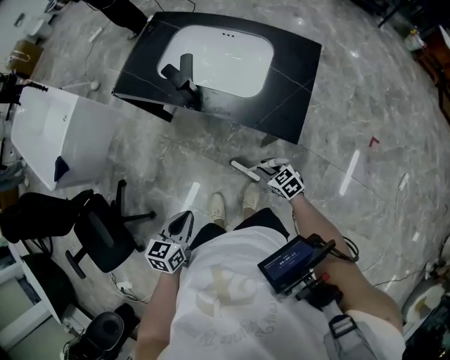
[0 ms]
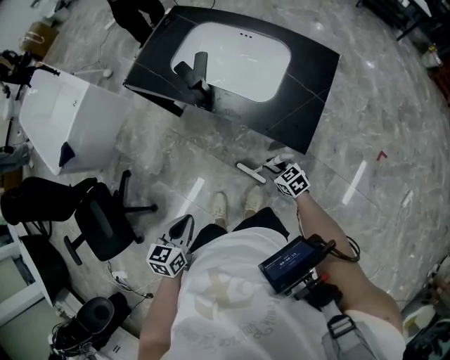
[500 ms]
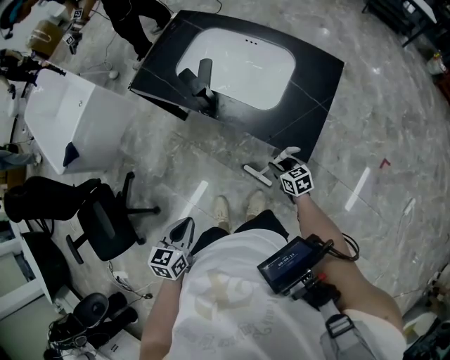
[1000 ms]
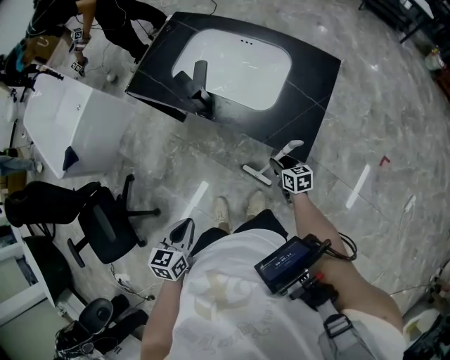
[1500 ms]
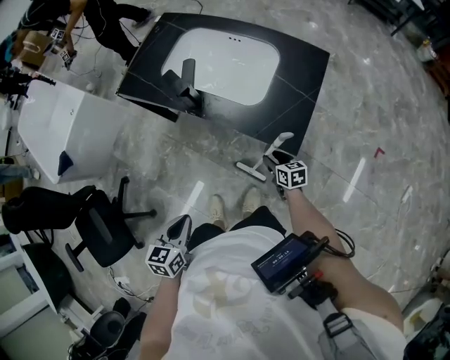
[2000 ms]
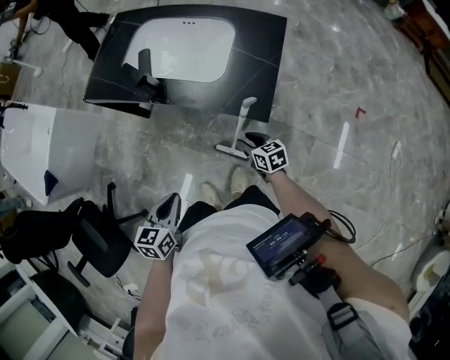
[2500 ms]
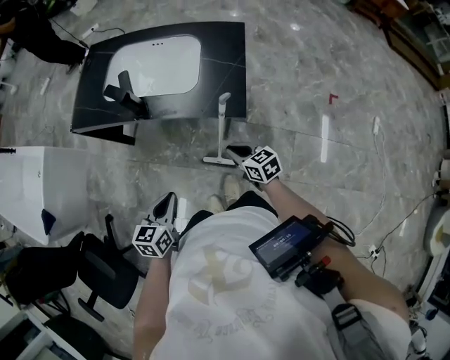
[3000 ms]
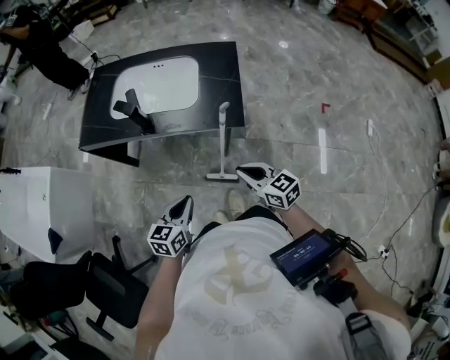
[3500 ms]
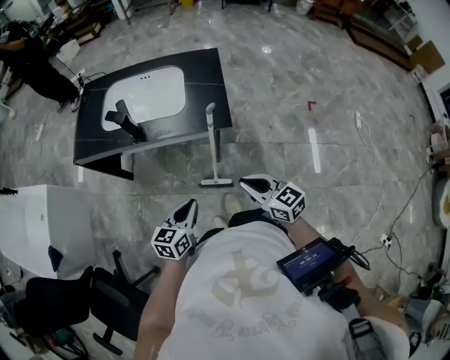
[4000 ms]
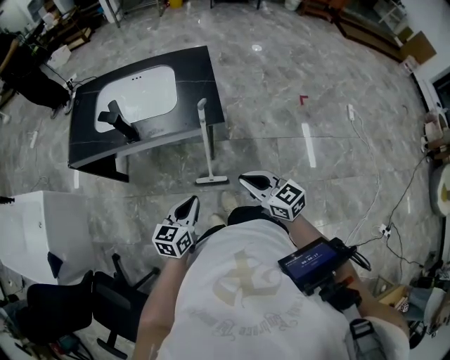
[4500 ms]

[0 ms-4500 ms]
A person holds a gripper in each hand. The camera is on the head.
0 ms to 2000 ms: The right gripper shifts about 10 cm to the right and forward, and turns by about 30 degrees.
2000 ms to 4500 ms: The right gripper heads upward, covering approximately 25 cm, turns by some 30 degrees, and closes its fingers. Meanwhile the left gripper changes place by roughly 10 cm, and turns by roughly 40 degrees.

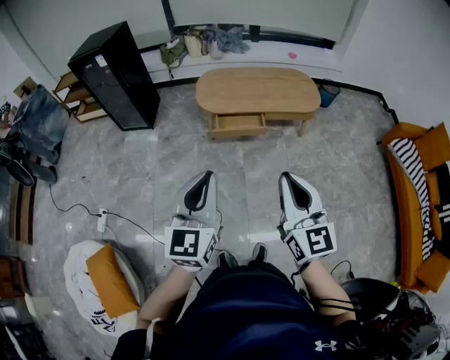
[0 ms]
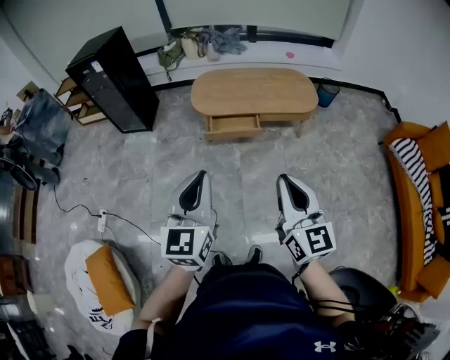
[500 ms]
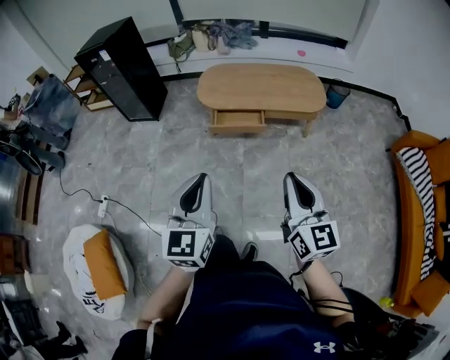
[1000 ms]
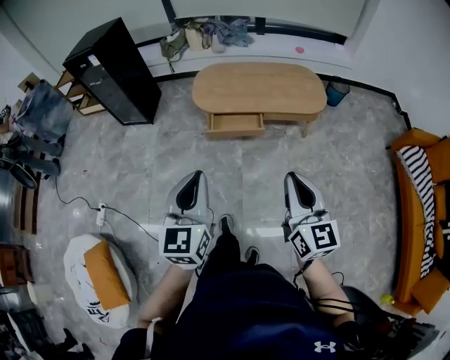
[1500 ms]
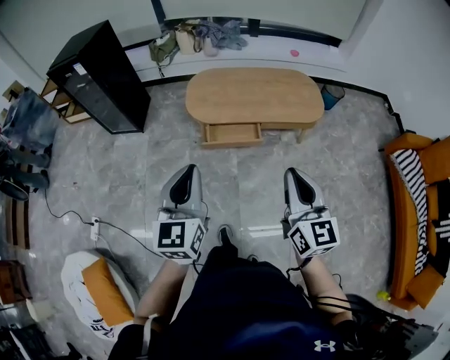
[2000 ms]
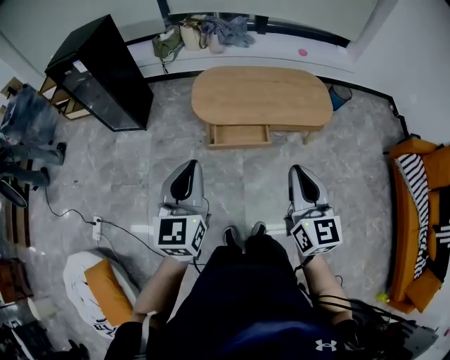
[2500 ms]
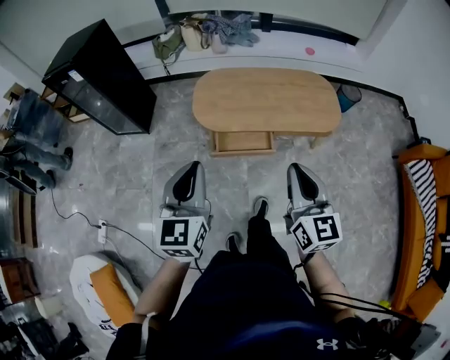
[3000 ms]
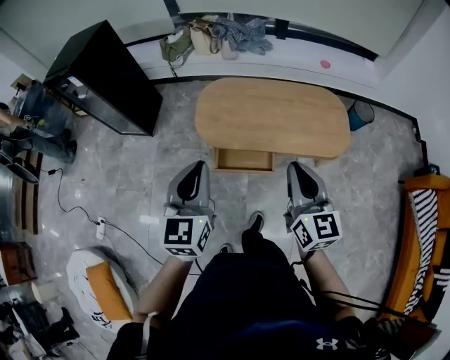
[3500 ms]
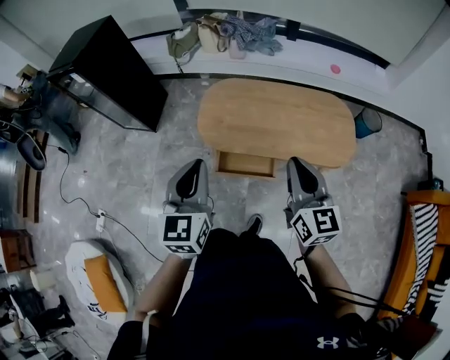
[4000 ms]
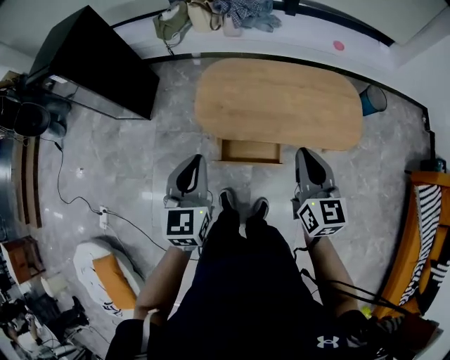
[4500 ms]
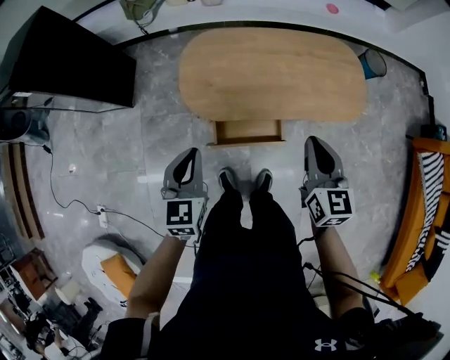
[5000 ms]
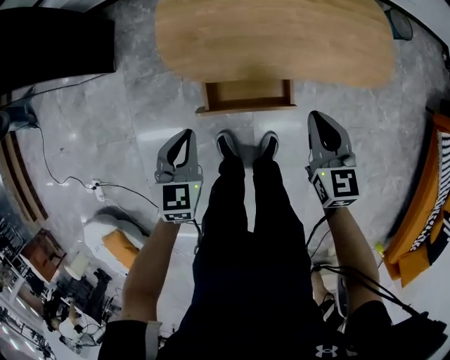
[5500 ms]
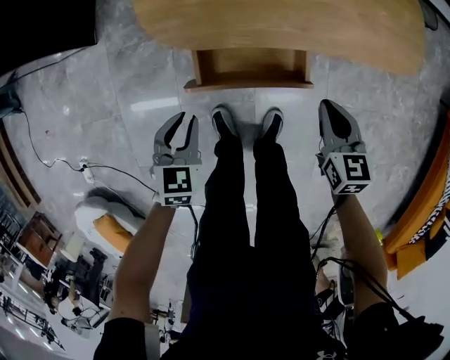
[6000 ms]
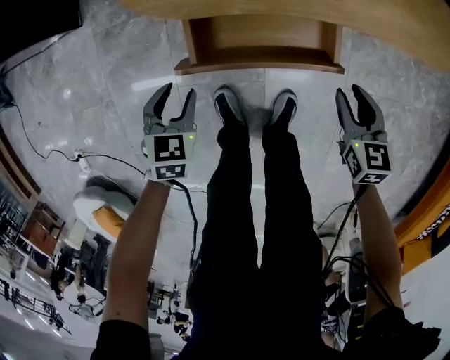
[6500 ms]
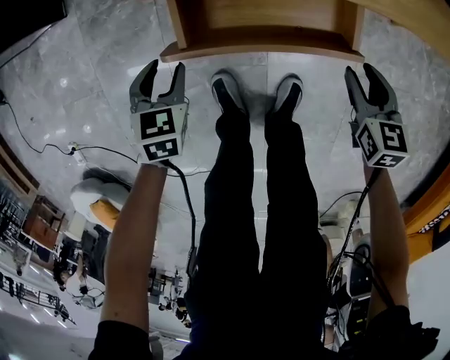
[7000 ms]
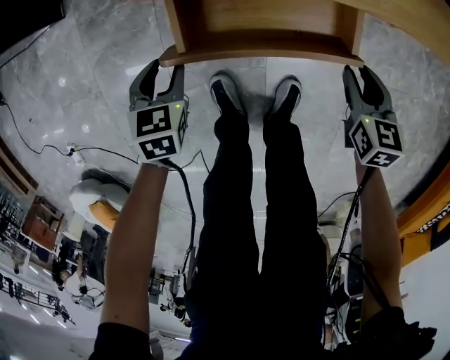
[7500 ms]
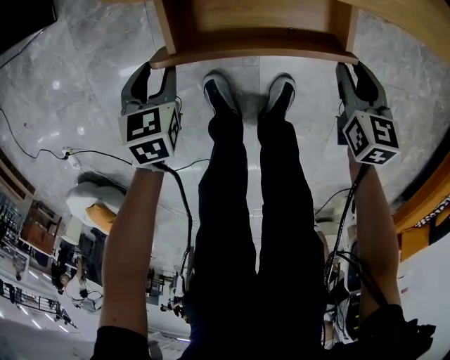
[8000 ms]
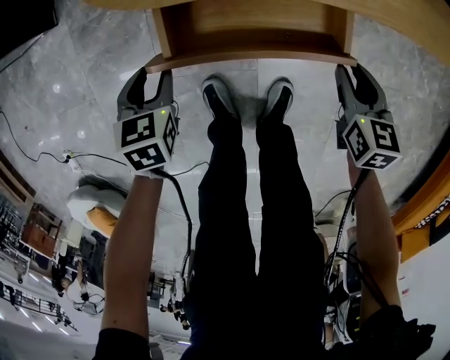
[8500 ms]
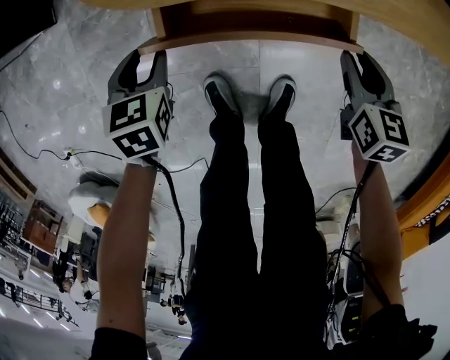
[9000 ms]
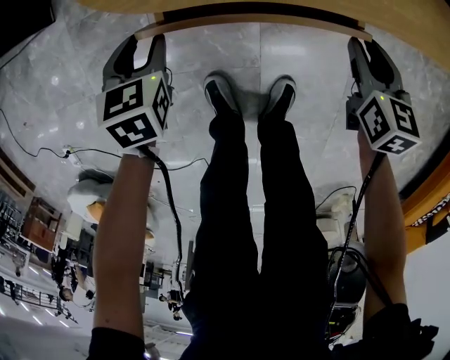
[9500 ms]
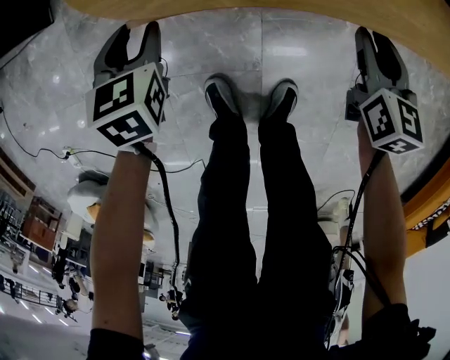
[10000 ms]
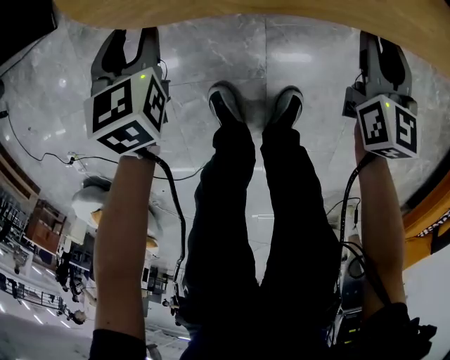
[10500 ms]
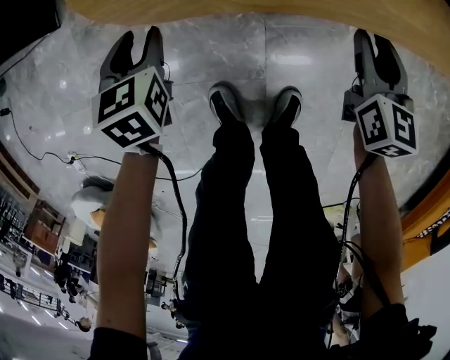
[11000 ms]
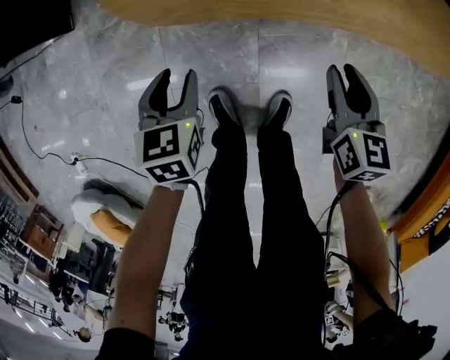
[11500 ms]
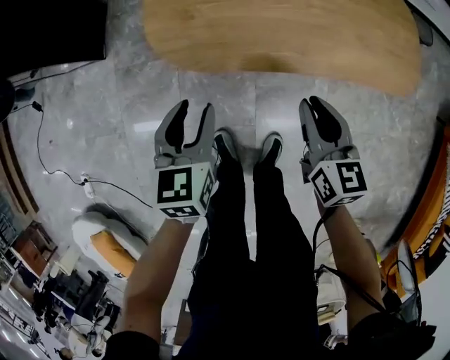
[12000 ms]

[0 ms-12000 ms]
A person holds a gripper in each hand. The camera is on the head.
0 ms to 2000 ms: The grippers both shift forward by approximately 20 cm.
2000 ms to 4000 ms: Both grippers travel together forward, approximately 35 cm.
4000 ms to 6000 ms: The two grippers go approximately 50 cm downward. The right gripper angles its fingers downward, by about 30 degrees, while the left gripper angles its fingers downward, by approximately 40 degrees.
6000 ms to 8000 ms: The two grippers go approximately 20 cm downward. The left gripper opens, while the right gripper opens its fingers.
8000 ms to 10000 ms: Both grippers travel together forward, approximately 10 cm.
10000 ms to 12000 ms: Both grippers travel together upward, about 25 cm.

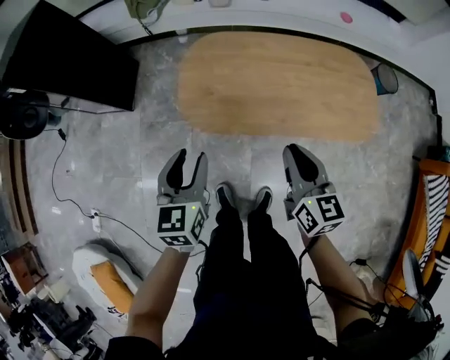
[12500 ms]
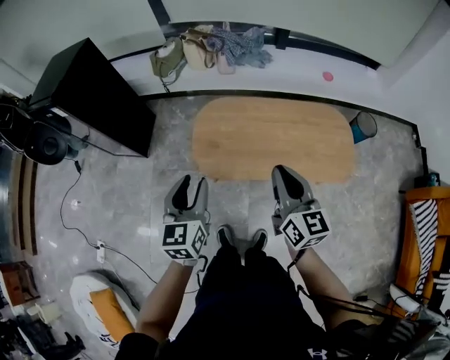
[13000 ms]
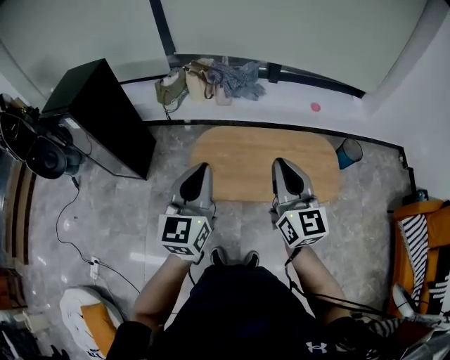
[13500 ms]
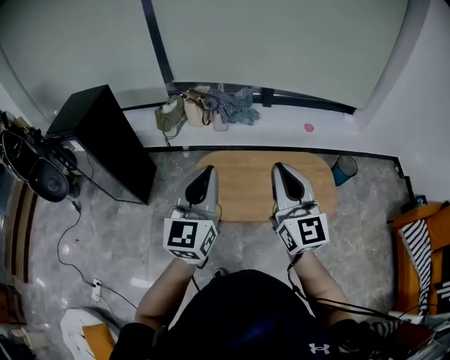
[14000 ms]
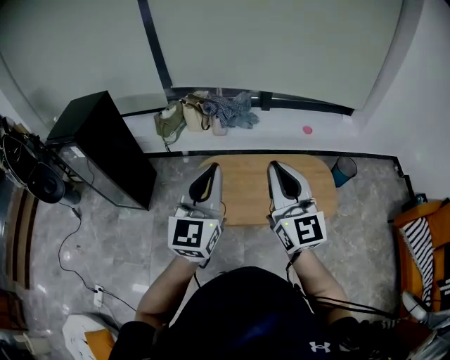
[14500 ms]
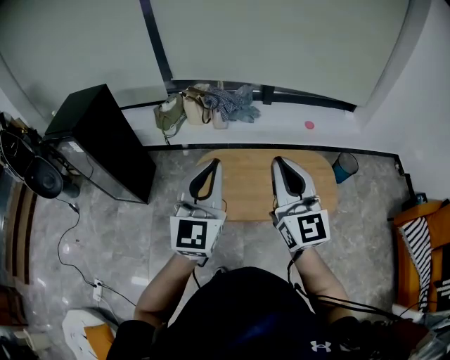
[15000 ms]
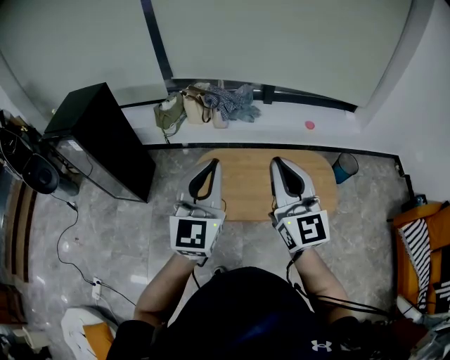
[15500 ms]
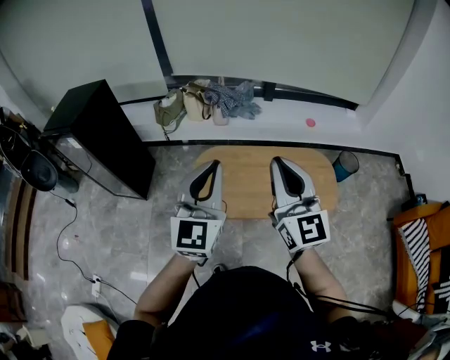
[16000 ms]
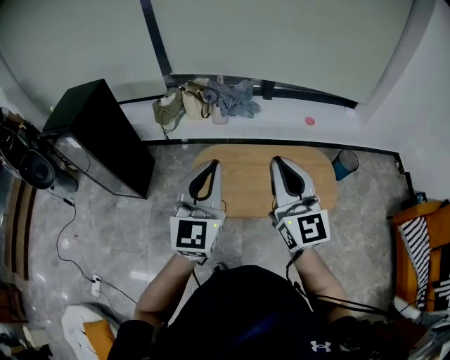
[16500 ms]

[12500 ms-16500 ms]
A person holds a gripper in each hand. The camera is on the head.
12500 ms to 14500 ms: The grippers both shift upward by about 40 cm. The left gripper tips its fingers upward by some 40 degrees, and closes its fingers; the right gripper points its fingers approximately 30 degrees further upward.
14500 ms to 16500 ms: There are only small adjustments of the grippers.

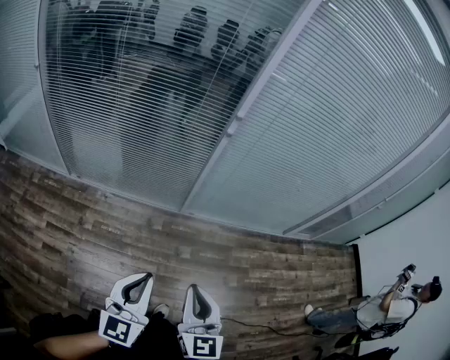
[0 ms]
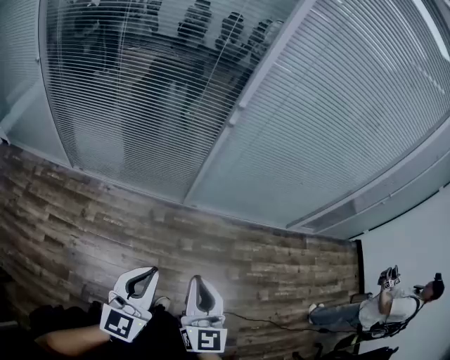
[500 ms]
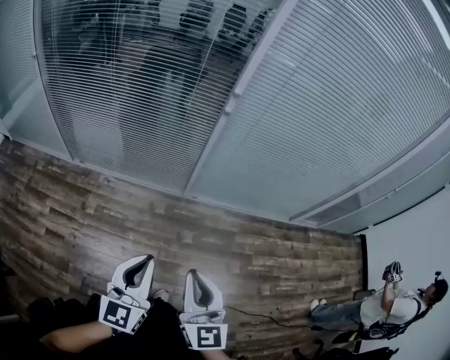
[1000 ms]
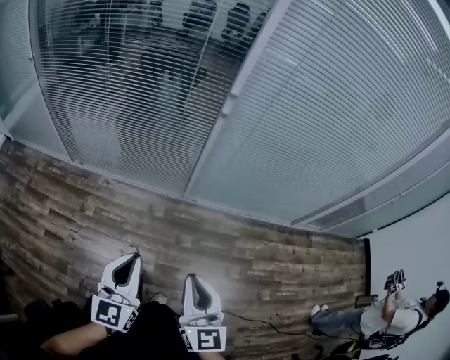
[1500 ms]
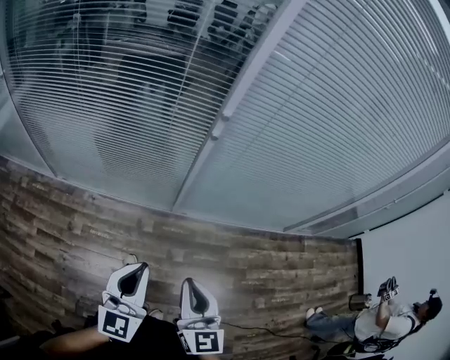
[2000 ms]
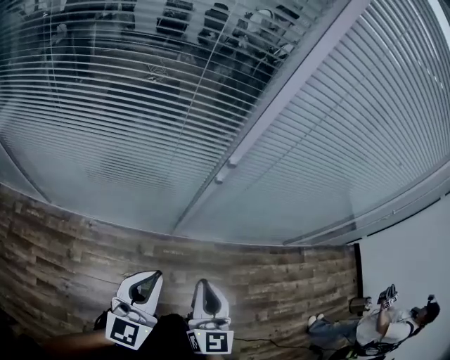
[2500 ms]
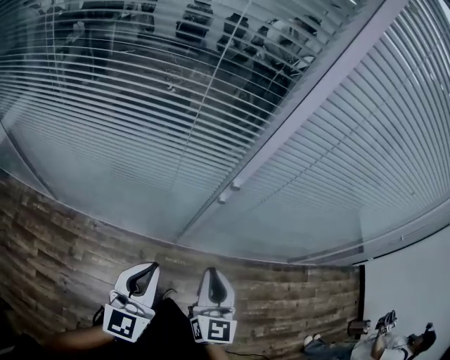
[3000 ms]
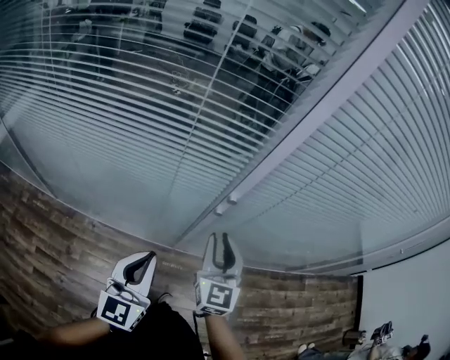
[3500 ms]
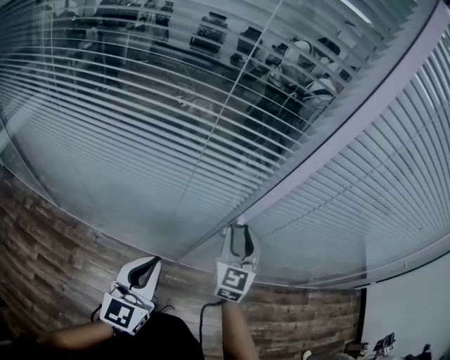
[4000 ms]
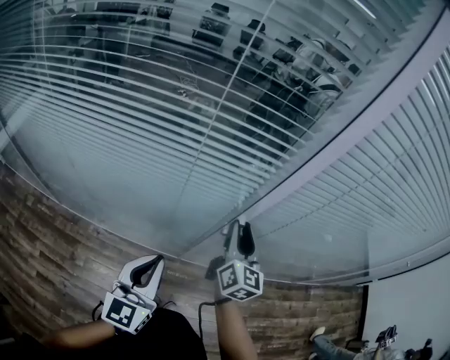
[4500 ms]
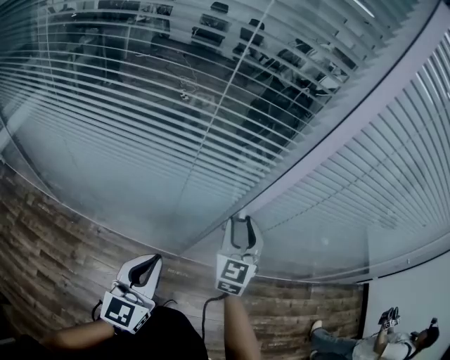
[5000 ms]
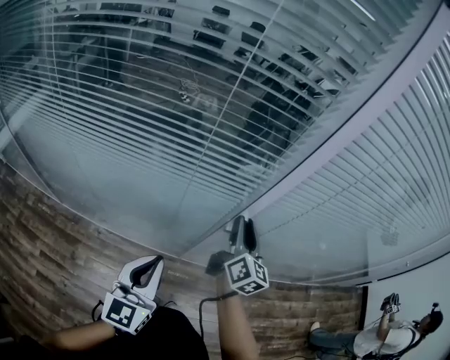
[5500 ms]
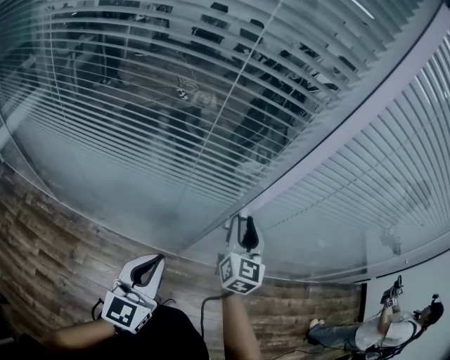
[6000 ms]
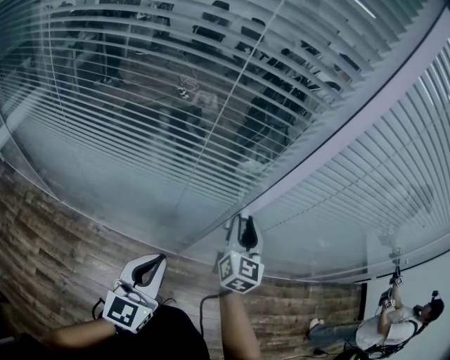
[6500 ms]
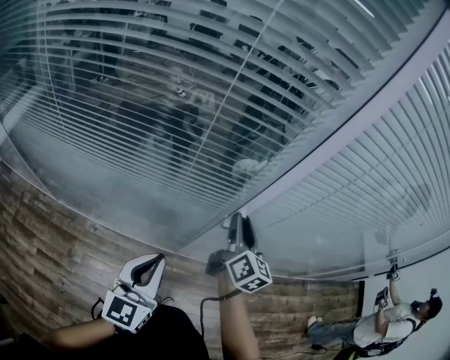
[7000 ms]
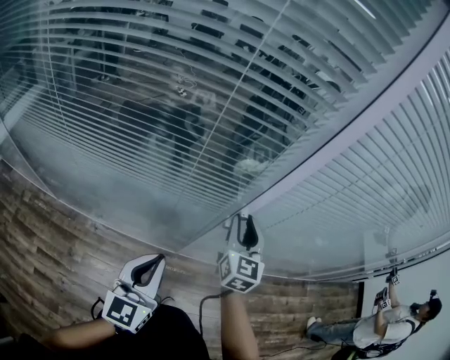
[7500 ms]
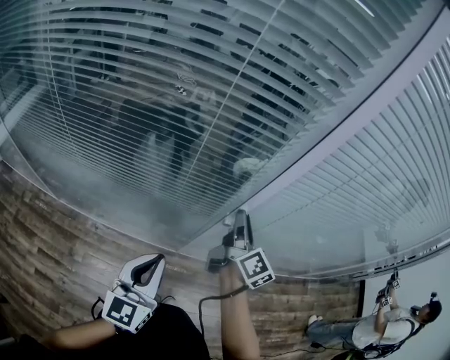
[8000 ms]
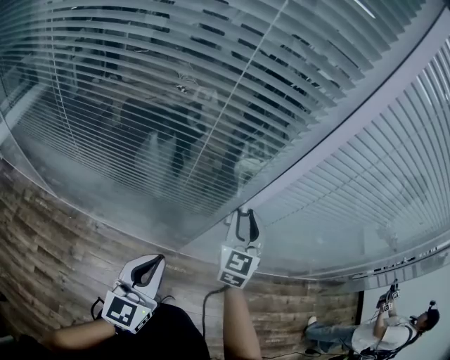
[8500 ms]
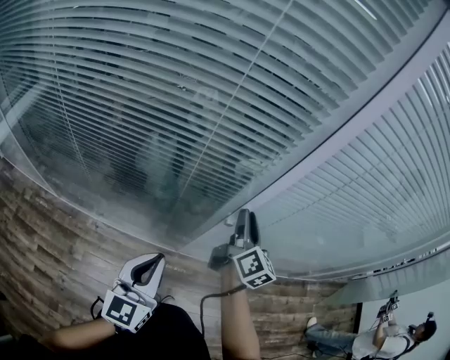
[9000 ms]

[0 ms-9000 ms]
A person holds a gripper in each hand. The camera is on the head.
0 ms to 2000 ms: The two grippers go some 15 cm forward.
2000 ms to 4500 ms: The left gripper travels forward by some 30 cm; the right gripper travels forward by approximately 50 cm, and opens its fingers.
